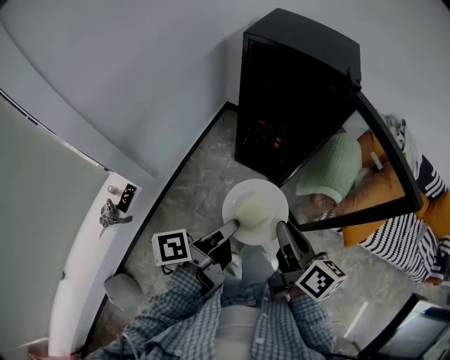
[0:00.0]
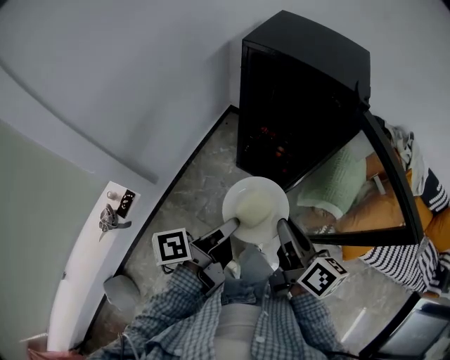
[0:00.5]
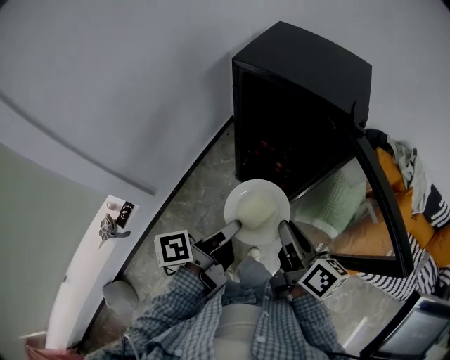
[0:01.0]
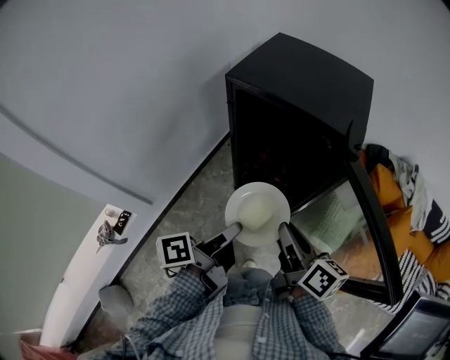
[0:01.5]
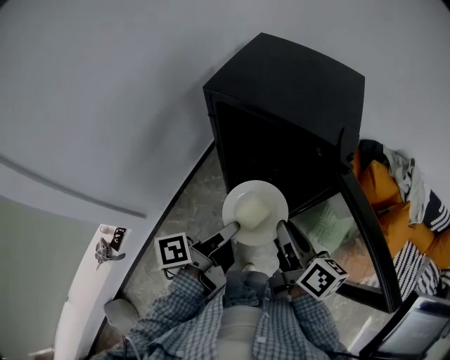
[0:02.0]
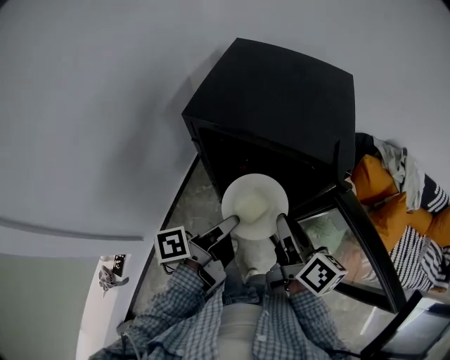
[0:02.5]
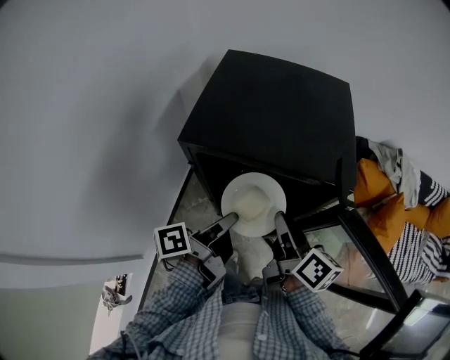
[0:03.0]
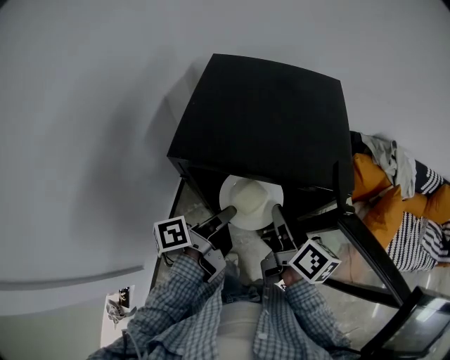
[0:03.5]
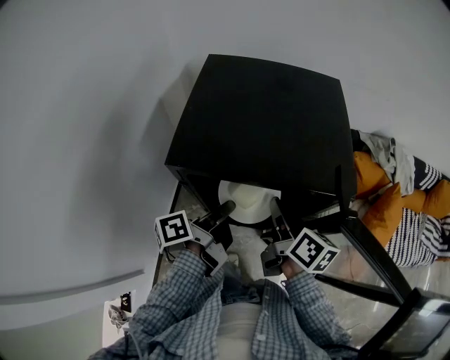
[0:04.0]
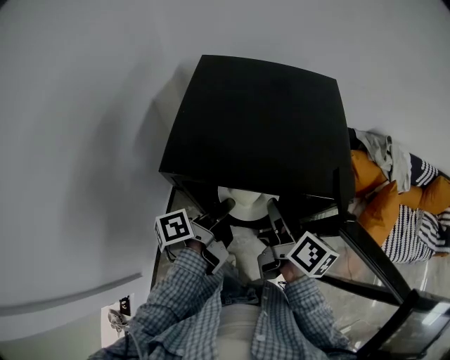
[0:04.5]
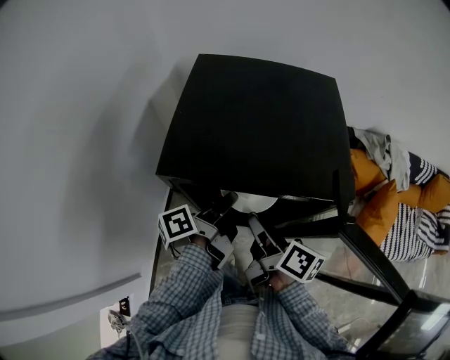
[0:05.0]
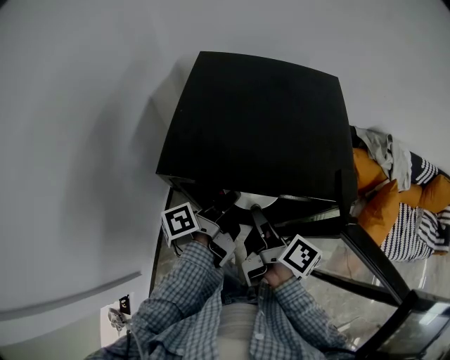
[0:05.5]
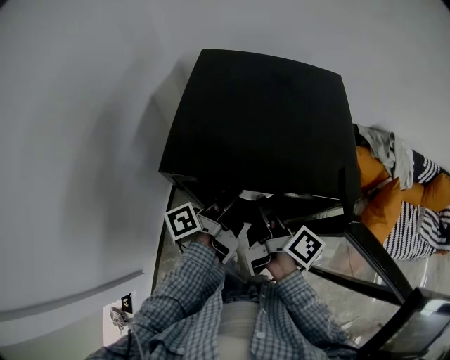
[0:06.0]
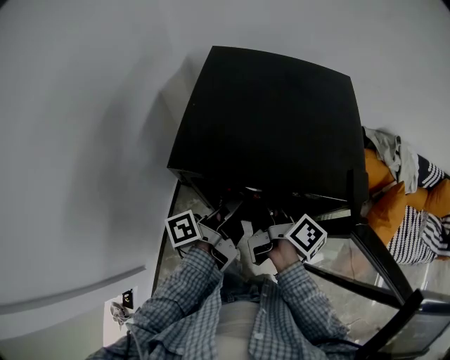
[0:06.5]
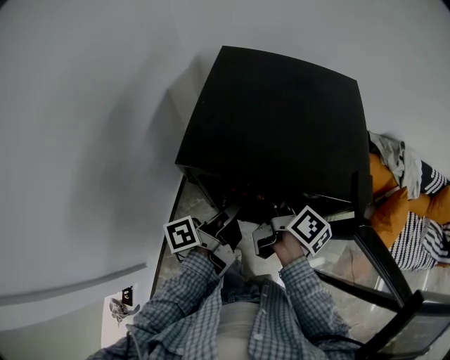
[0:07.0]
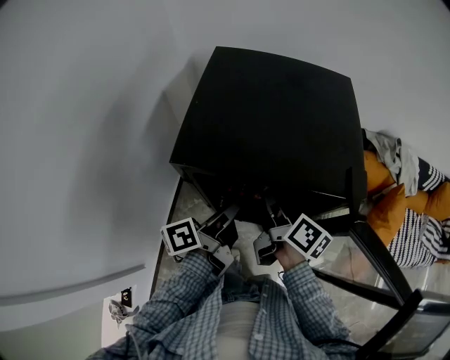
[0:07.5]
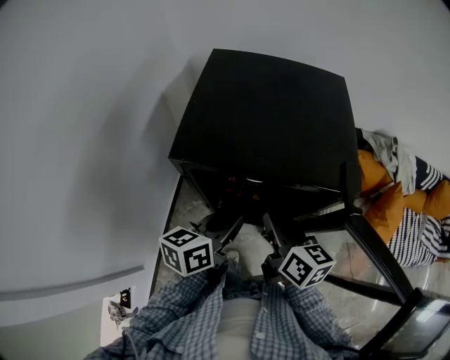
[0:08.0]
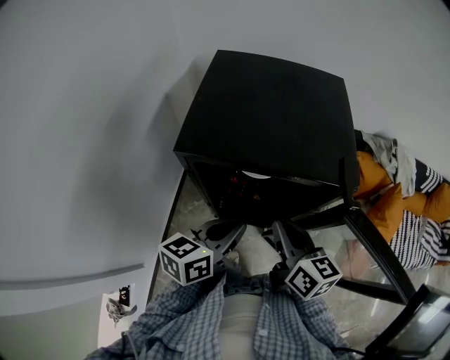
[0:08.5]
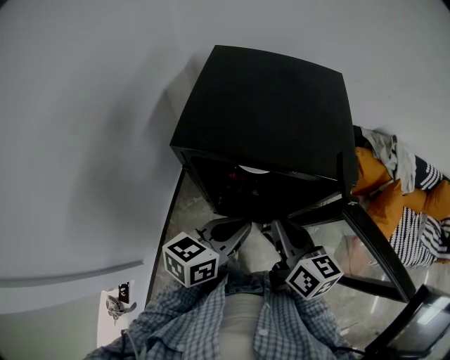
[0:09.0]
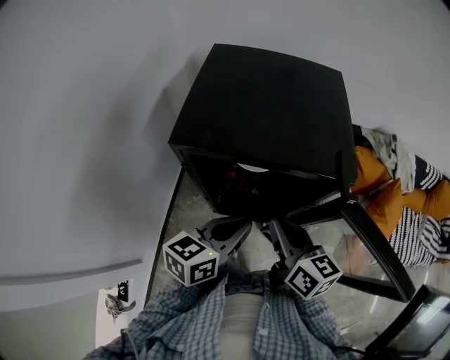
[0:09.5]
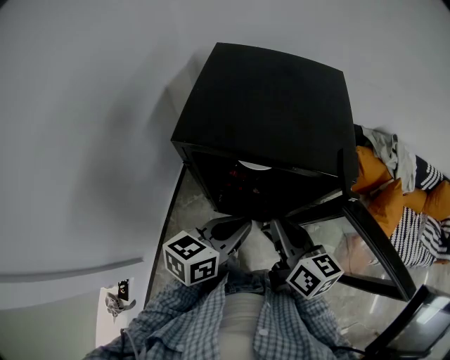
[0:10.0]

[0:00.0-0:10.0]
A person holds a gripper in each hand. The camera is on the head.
0:00.0 to 0:02.0: The right gripper moves approximately 25 cm.
0:02.0 to 0:04.0: The right gripper moves roughly 20 cm, and turns by approximately 20 degrees.
0:04.0 to 0:06.0: The right gripper rotates approximately 30 degrees.
0:06.0 to 0:08.0: The right gripper ends up some 5 cm from where it was, and rotates around the line of its fingers by approximately 40 degrees, counterclockwise from behind.
0:08.0 to 0:10.0: The right gripper shifts by some 5 cm.

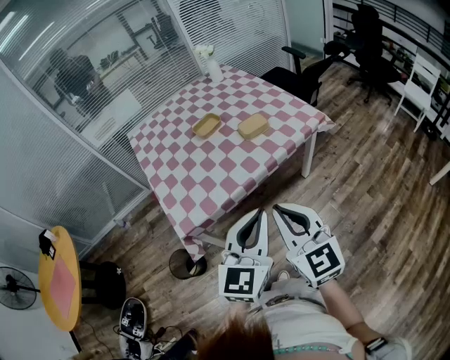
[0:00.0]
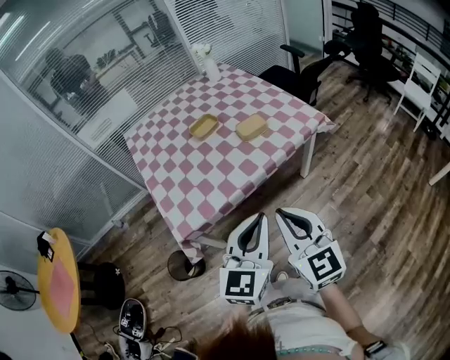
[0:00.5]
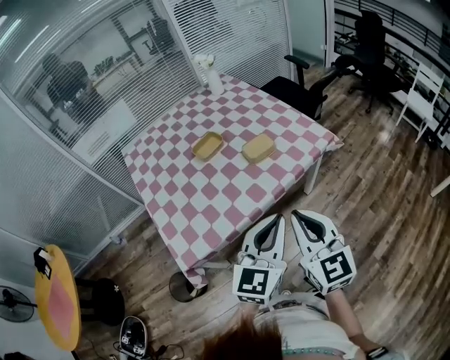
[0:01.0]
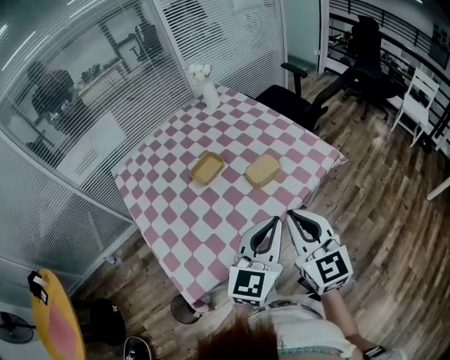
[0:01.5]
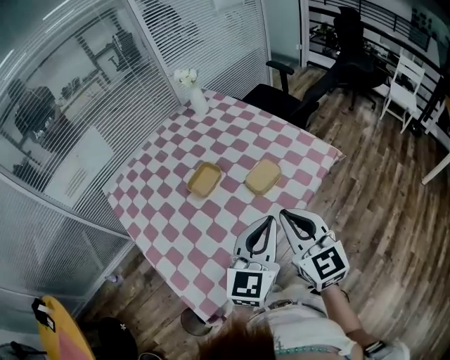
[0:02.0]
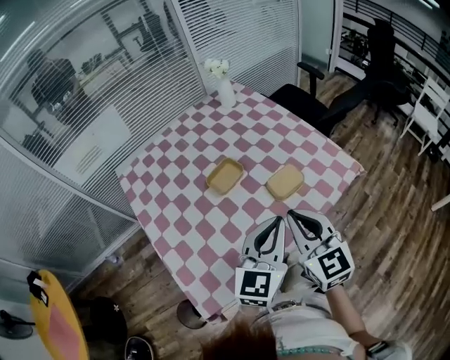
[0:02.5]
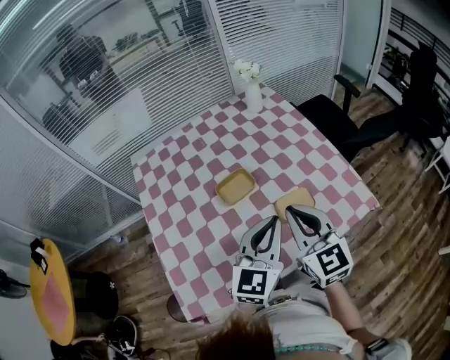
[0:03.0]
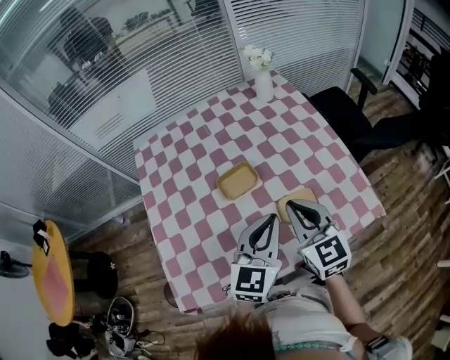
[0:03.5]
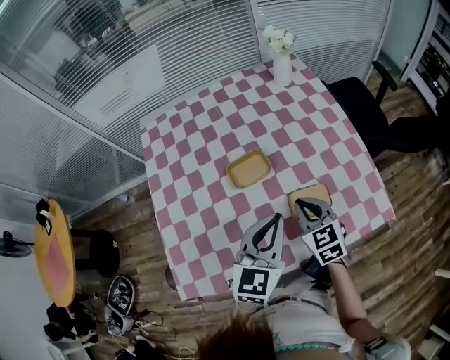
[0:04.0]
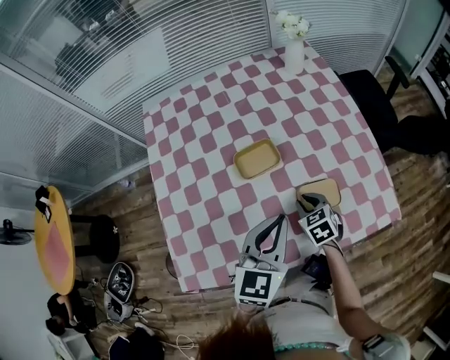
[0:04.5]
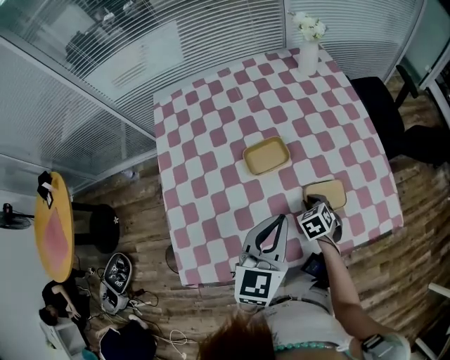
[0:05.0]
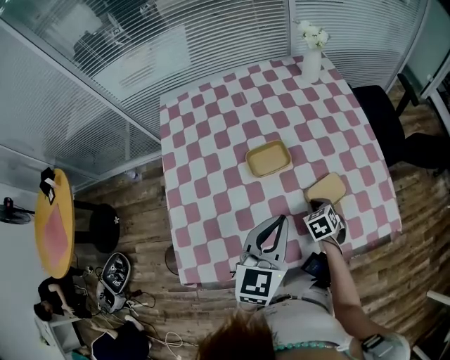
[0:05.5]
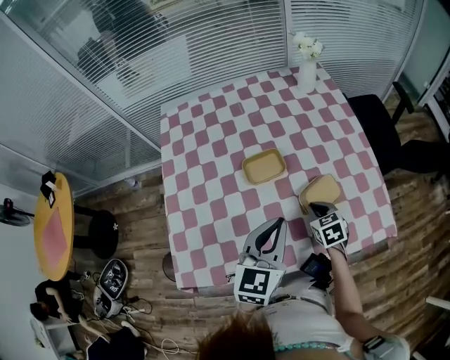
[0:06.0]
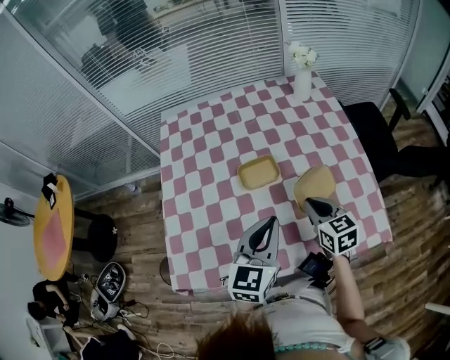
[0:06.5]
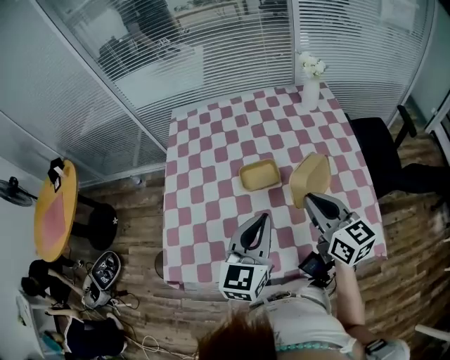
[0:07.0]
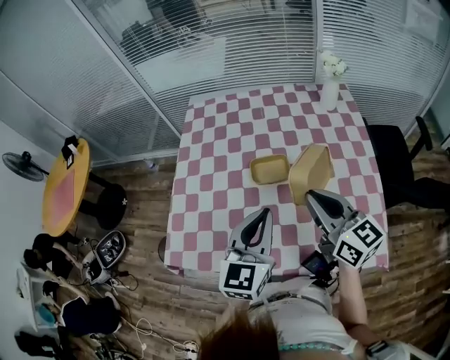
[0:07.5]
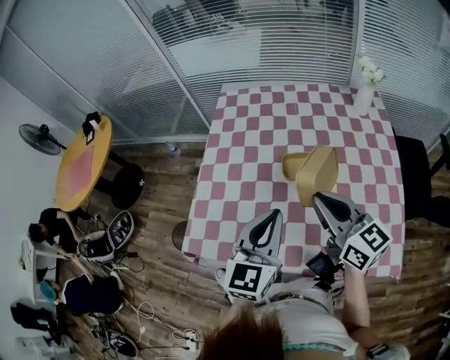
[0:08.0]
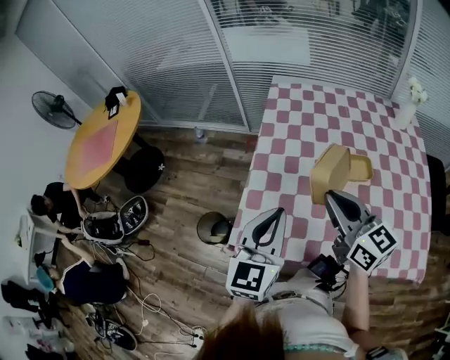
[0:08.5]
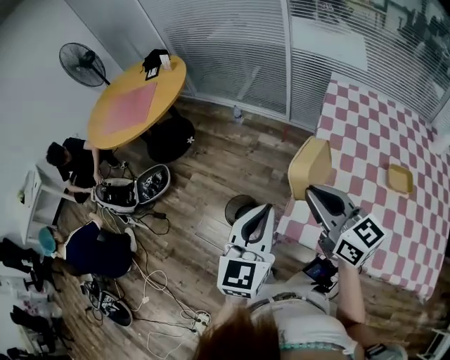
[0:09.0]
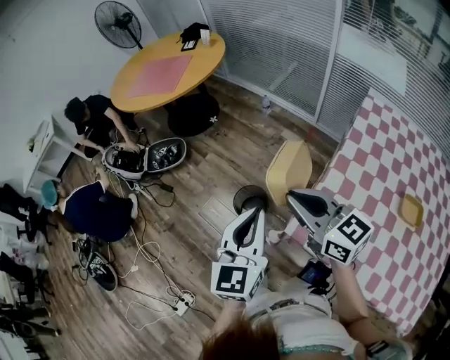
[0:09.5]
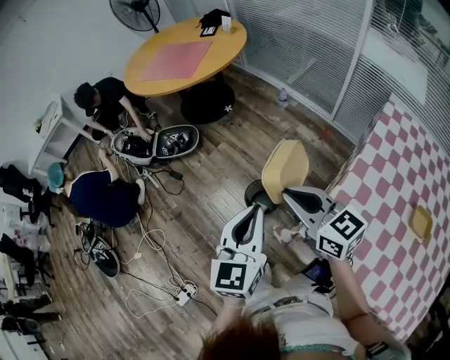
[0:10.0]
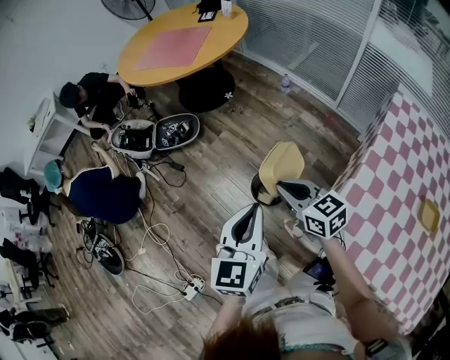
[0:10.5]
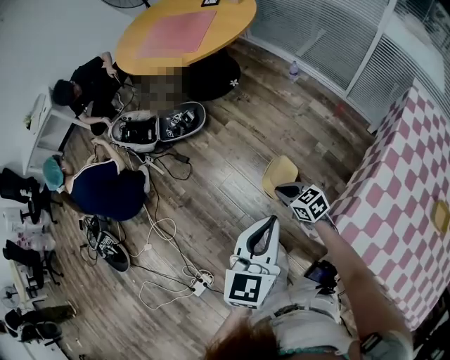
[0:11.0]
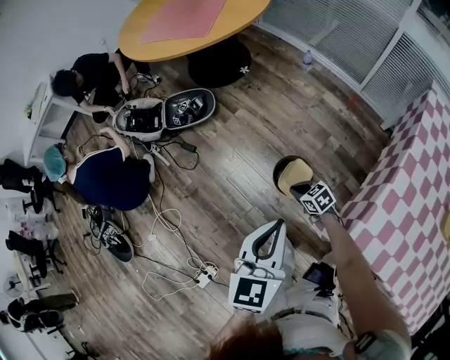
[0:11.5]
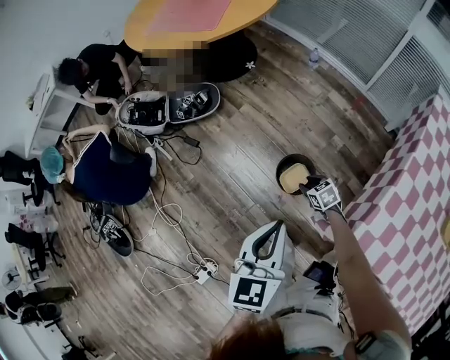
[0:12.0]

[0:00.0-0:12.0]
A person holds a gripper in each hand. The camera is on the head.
0:00.0 to 0:02.0: The grippers both shift forward by approximately 30 cm.
0:02.0 to 0:04.0: The right gripper ends up approximately 30 cm from where it was, and rotates about 40 degrees, while the left gripper ends up about 20 cm from where it was, and changes its angle by roughly 30 degrees.
0:04.0 to 0:06.0: The right gripper heads downward, covering about 10 cm.
0:06.0 to 0:08.0: The left gripper ends up some 10 cm from where it was, and swivels approximately 20 degrees; the right gripper moves upward, some 25 cm, and points its fingers roughly 50 degrees further upward.
0:08.0 to 0:10.0: The two grippers travel together, some 60 cm. The right gripper swivels some 50 degrees, while the left gripper swivels roughly 40 degrees.
0:10.0 to 0:12.0: The left gripper moves downward, to the left and forward, approximately 15 cm; the right gripper heads downward, covering approximately 50 cm, tips its fingers downward by roughly 50 degrees, and opens.

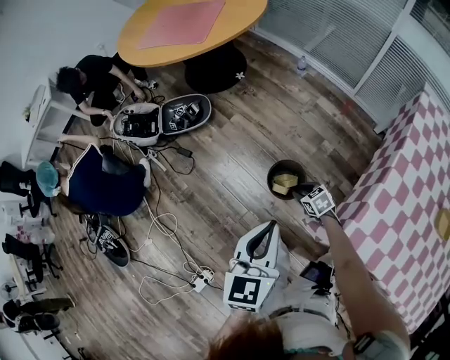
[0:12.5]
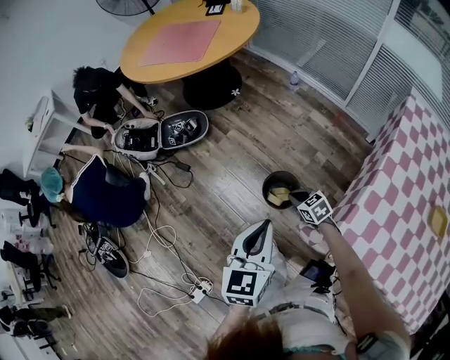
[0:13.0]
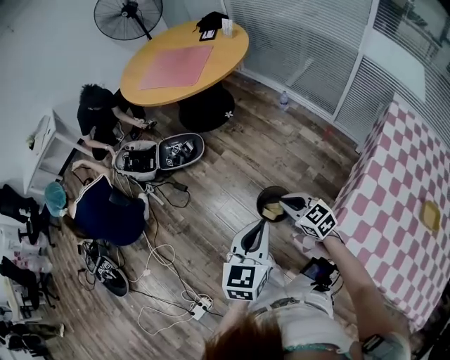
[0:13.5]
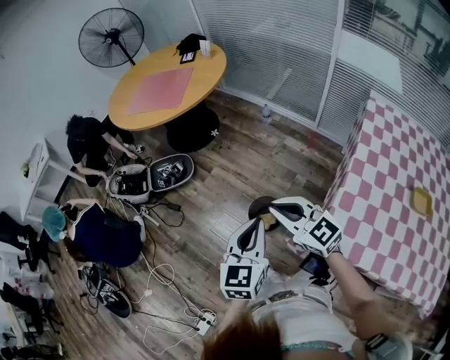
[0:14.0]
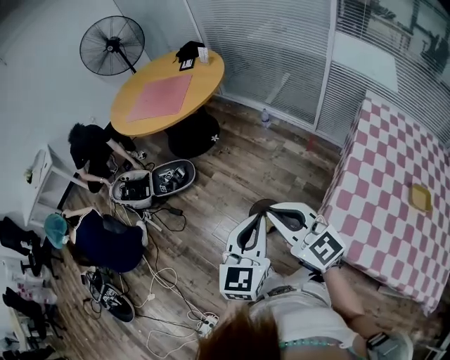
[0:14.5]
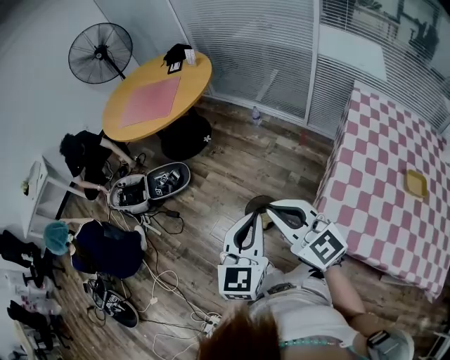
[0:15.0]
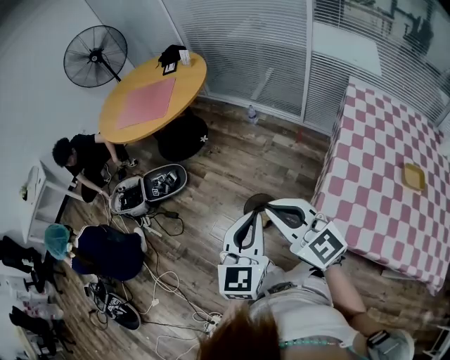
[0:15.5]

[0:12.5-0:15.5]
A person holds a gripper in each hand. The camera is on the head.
0:12.5 to 0:14.0: The left gripper goes about 5 cm upward, while the right gripper moves upward, about 40 cm, points its fingers about 40 degrees further upward, and closes its fingers.
0:14.0 to 0:15.5: The left gripper shifts by some 5 cm, while the right gripper moves upward and backward, roughly 10 cm.

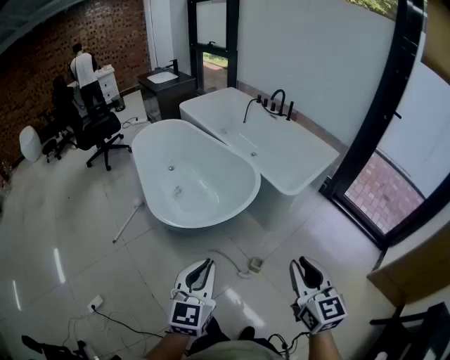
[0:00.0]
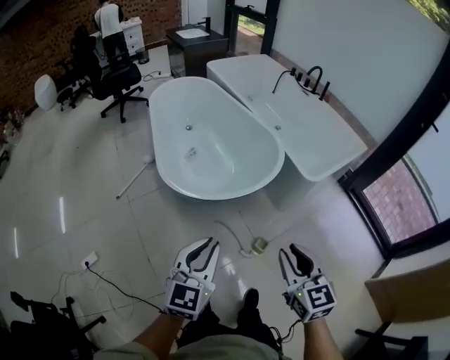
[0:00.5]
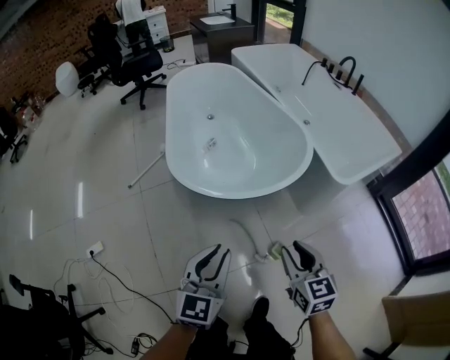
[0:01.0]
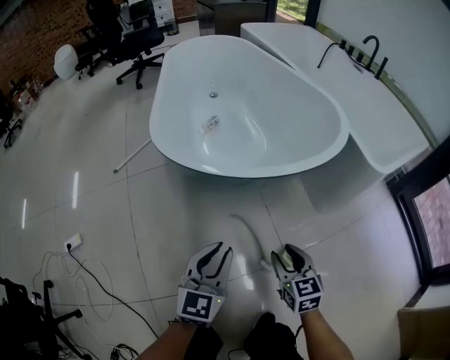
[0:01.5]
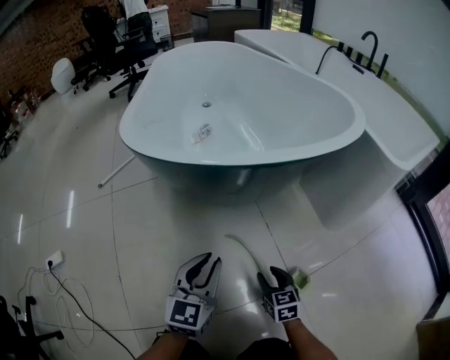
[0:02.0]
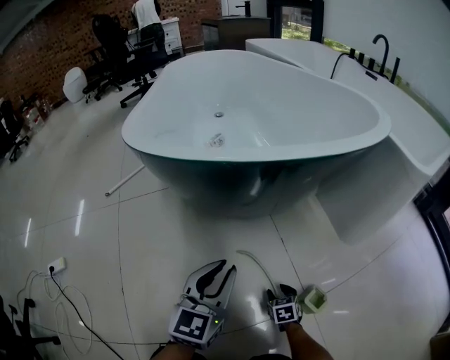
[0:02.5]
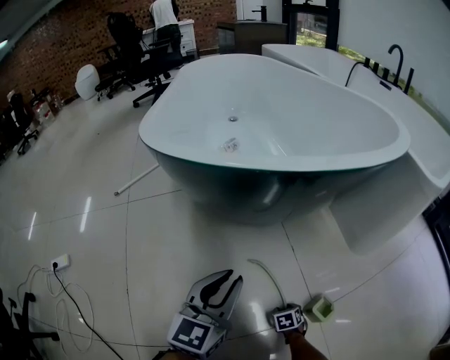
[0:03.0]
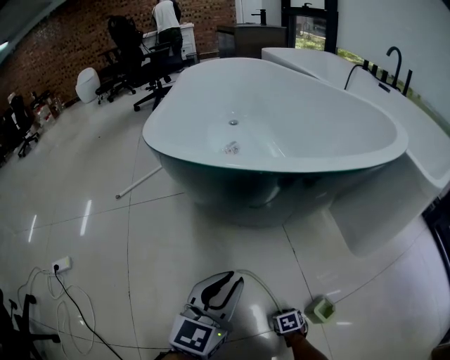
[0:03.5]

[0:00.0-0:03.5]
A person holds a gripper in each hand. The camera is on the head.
0:00.0 to 0:02.0: The left gripper travels downward and forward by approximately 90 cm; the right gripper is displaced downward by approximately 1 m, and changes its angle by about 30 degrees.
0:02.0 to 0:03.5: The right gripper is displaced downward by roughly 30 cm, tips its fingers downward by about 30 degrees, and closes. The left gripper changes place by about 5 cm.
